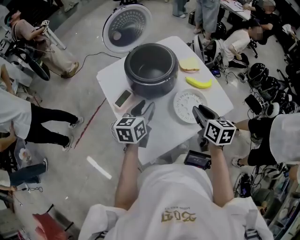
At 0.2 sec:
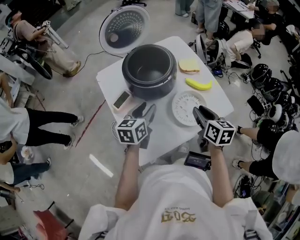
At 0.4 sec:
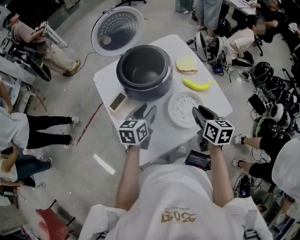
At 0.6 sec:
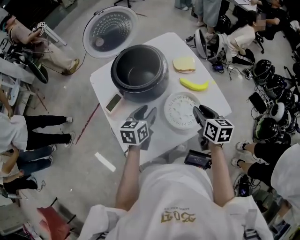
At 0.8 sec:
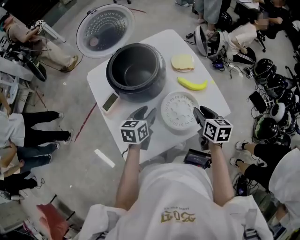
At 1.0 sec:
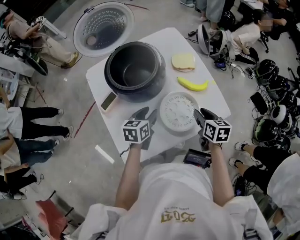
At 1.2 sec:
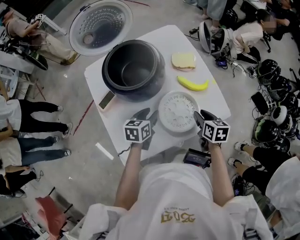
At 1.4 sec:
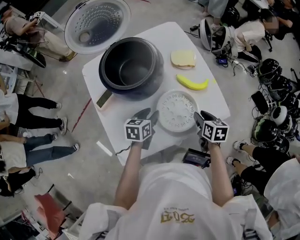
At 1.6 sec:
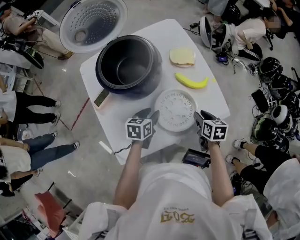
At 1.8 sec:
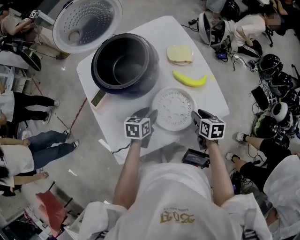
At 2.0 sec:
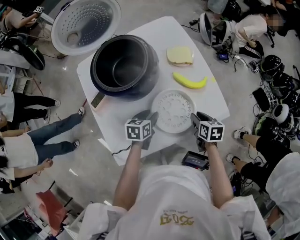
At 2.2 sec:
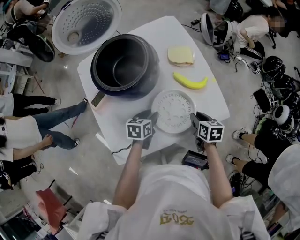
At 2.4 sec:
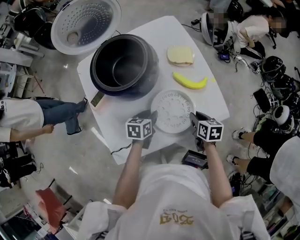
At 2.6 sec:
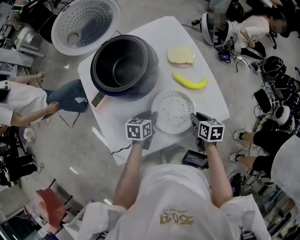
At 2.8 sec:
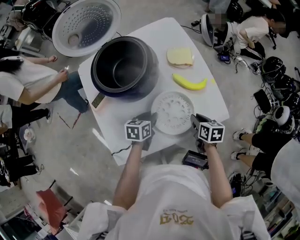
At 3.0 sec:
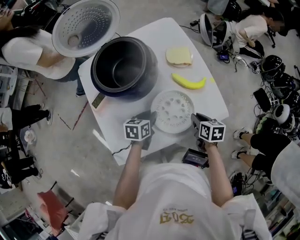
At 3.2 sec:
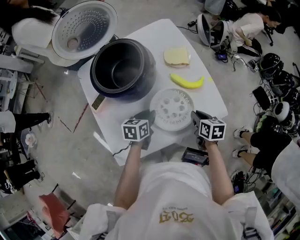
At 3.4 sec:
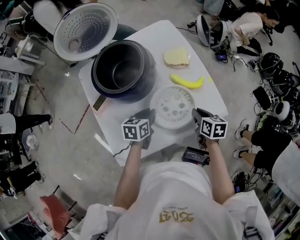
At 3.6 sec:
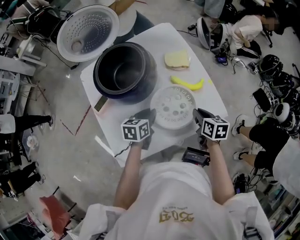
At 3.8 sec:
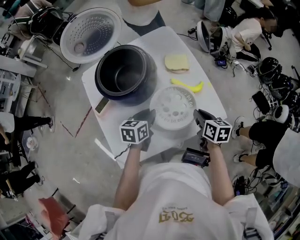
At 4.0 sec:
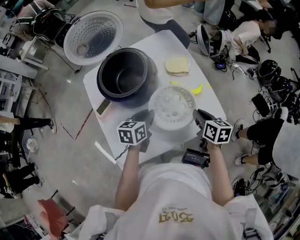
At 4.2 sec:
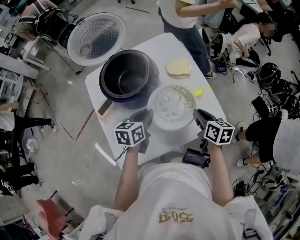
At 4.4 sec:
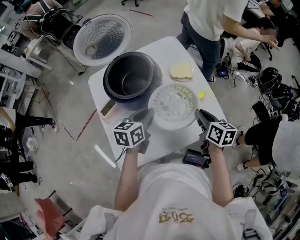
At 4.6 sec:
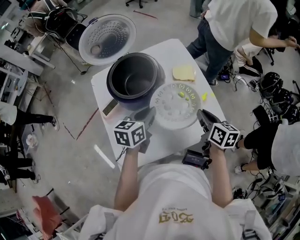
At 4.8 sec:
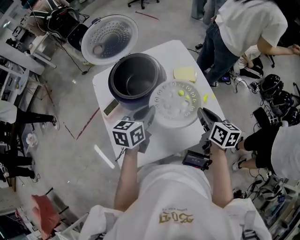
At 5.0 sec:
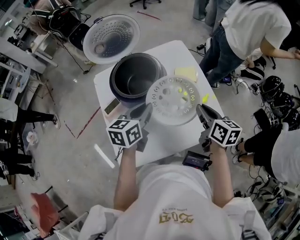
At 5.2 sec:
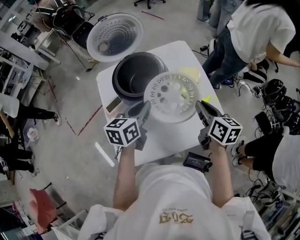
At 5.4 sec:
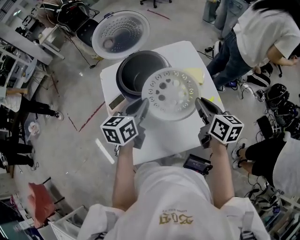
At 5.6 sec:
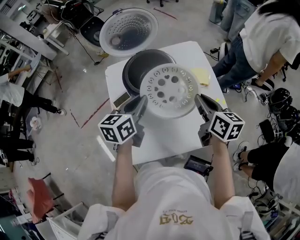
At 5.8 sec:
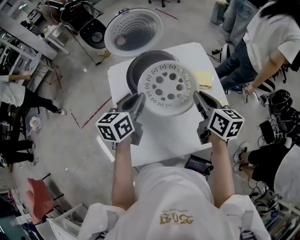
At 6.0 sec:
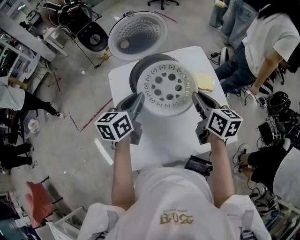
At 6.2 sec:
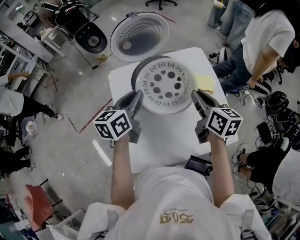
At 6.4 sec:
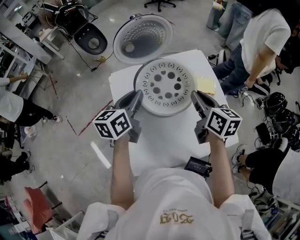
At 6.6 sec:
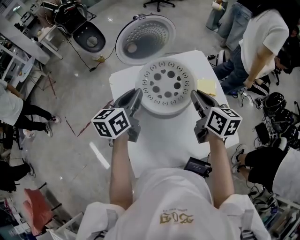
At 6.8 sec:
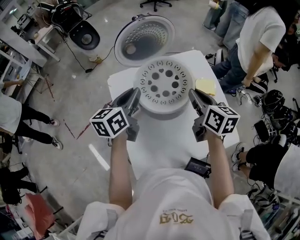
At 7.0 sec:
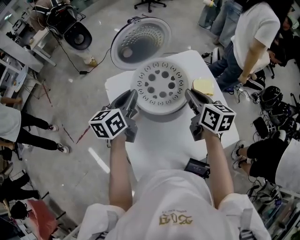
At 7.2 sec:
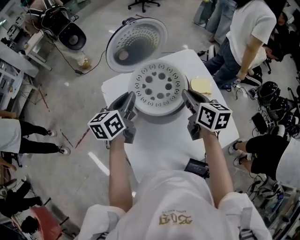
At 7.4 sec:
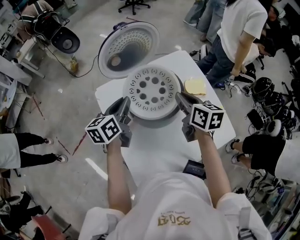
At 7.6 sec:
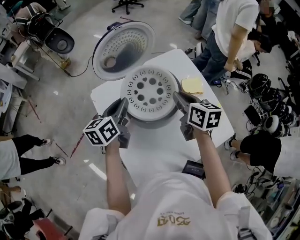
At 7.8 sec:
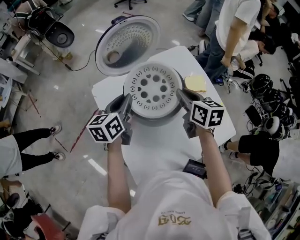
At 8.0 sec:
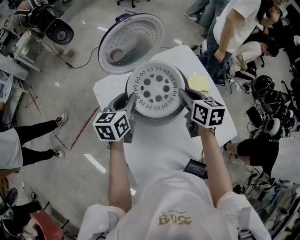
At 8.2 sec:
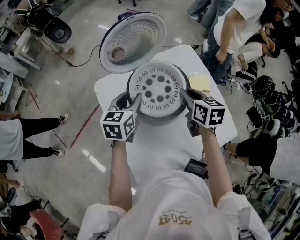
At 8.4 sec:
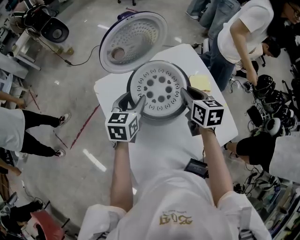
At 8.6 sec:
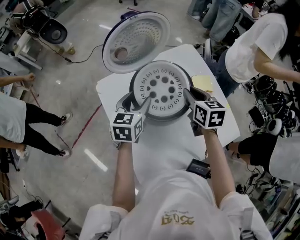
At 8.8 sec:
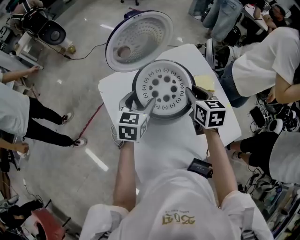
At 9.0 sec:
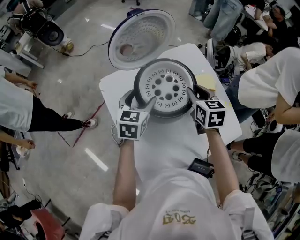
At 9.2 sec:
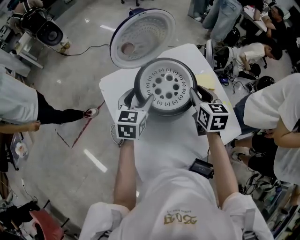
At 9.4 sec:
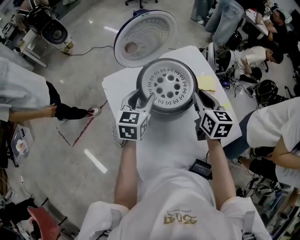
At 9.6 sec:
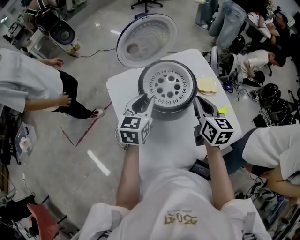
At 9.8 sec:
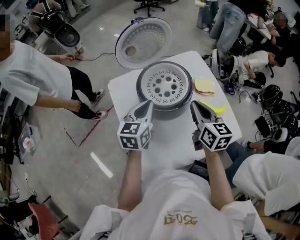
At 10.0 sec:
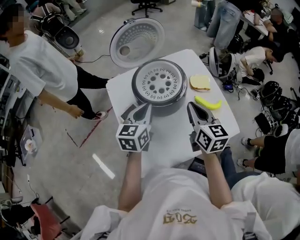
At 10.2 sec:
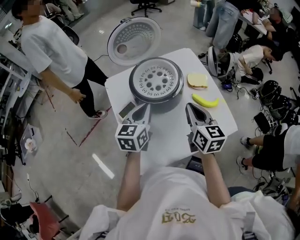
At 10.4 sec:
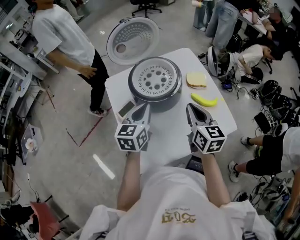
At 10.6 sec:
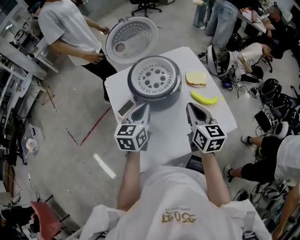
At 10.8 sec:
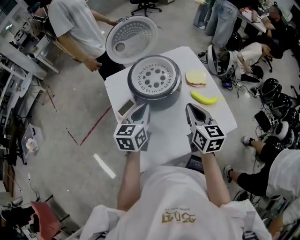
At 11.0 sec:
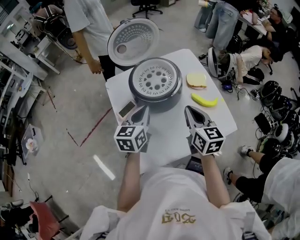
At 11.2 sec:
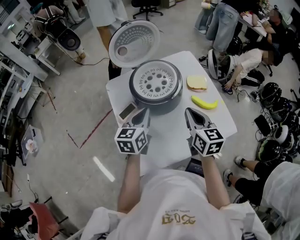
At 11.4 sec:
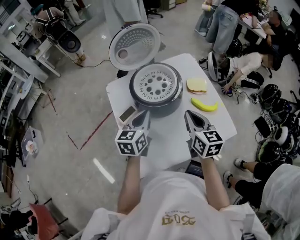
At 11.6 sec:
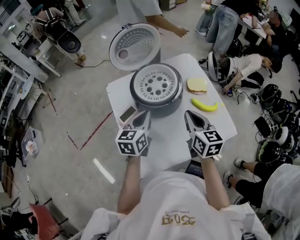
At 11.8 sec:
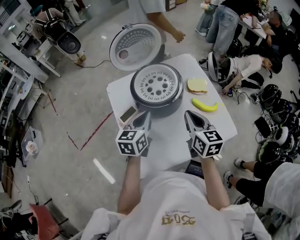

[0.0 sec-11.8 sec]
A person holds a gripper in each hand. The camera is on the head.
0.0 sec to 1.4 sec: The right gripper travels downward, to the right and forward by some 20 cm; the left gripper moves downward and to the right, roughly 20 cm, and swivels about 20 degrees.
1.4 sec to 3.0 sec: The left gripper closes.
3.0 sec to 4.4 sec: Both grippers travel together upward, approximately 15 cm.
4.4 sec to 6.0 sec: The left gripper shifts about 20 cm to the left and upward; the right gripper goes about 20 cm to the left, upward and forward.
6.0 sec to 7.4 sec: The left gripper shifts by some 5 cm.
7.4 sec to 8.8 sec: The right gripper is displaced to the right, downward and forward by about 20 cm, while the left gripper heads to the right and downward, covering some 25 cm, rotates approximately 30 degrees, and opens.
8.8 sec to 10.4 sec: Both grippers travel together backward, to the left and upward, approximately 25 cm. The right gripper closes. Meanwhile the left gripper closes.
10.4 sec to 11.8 sec: The grippers make only small movements.

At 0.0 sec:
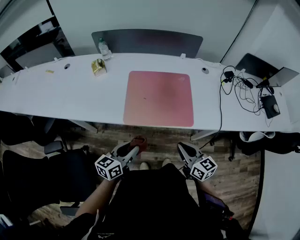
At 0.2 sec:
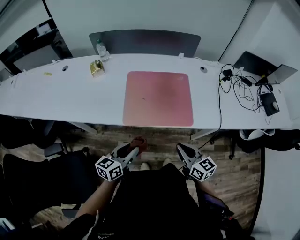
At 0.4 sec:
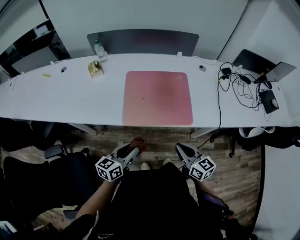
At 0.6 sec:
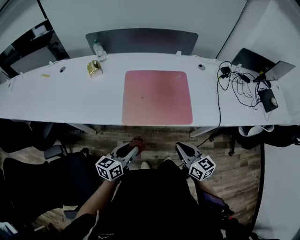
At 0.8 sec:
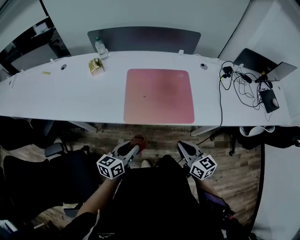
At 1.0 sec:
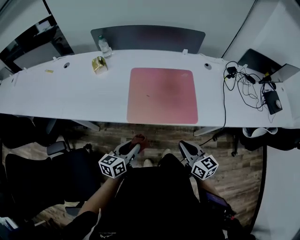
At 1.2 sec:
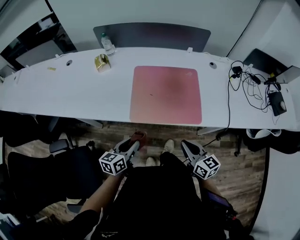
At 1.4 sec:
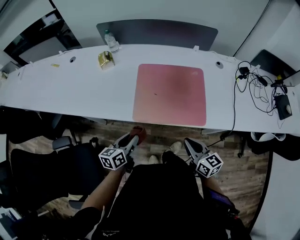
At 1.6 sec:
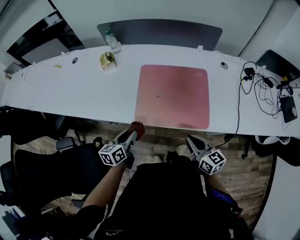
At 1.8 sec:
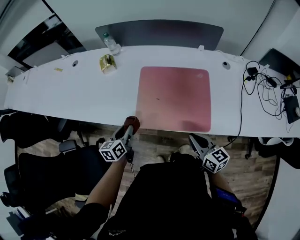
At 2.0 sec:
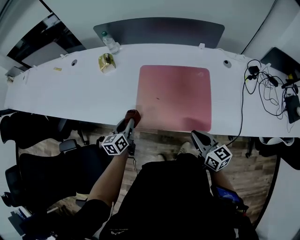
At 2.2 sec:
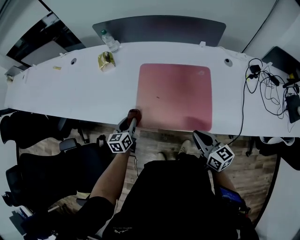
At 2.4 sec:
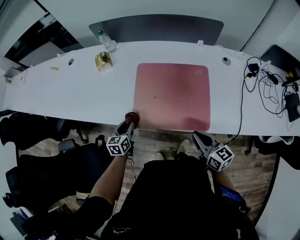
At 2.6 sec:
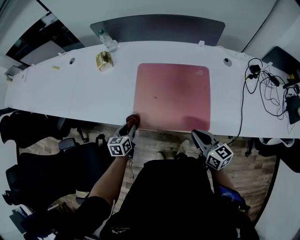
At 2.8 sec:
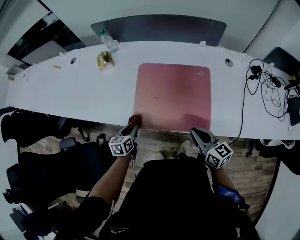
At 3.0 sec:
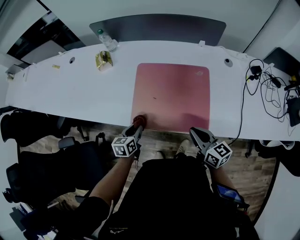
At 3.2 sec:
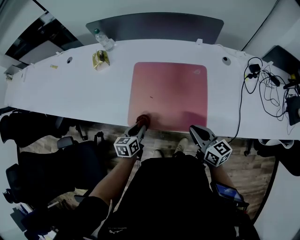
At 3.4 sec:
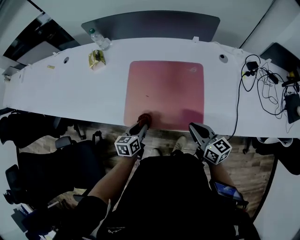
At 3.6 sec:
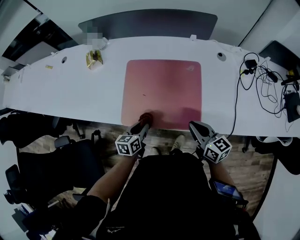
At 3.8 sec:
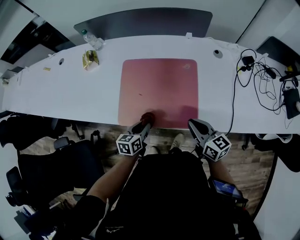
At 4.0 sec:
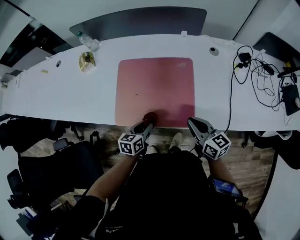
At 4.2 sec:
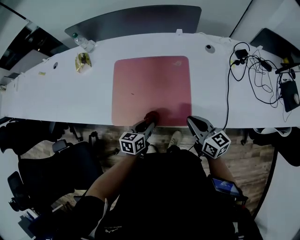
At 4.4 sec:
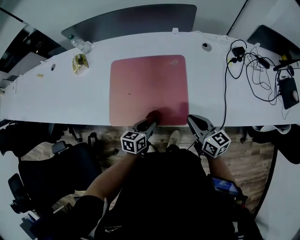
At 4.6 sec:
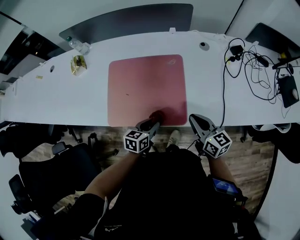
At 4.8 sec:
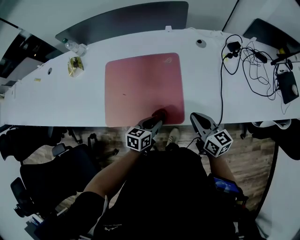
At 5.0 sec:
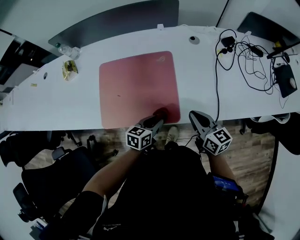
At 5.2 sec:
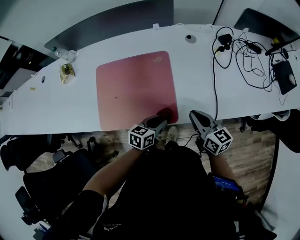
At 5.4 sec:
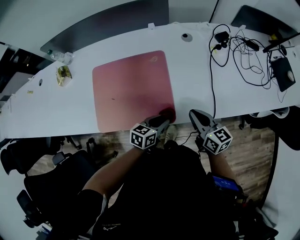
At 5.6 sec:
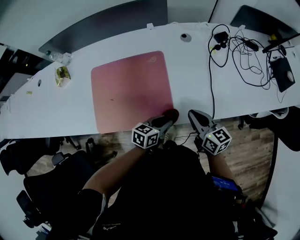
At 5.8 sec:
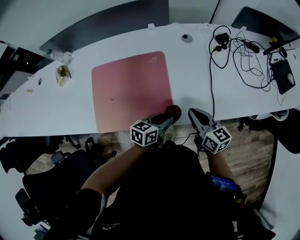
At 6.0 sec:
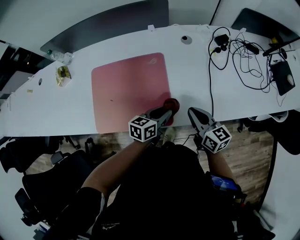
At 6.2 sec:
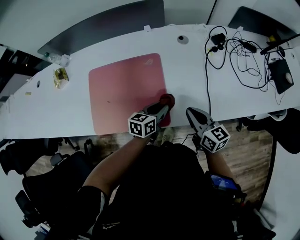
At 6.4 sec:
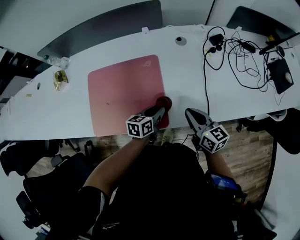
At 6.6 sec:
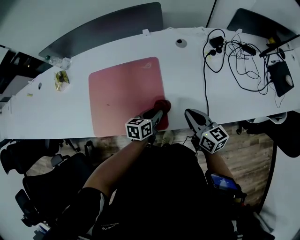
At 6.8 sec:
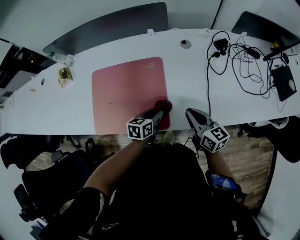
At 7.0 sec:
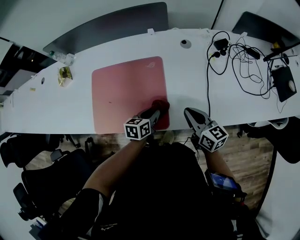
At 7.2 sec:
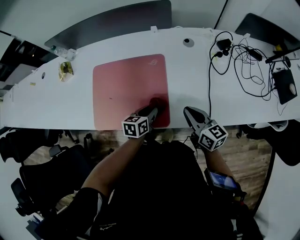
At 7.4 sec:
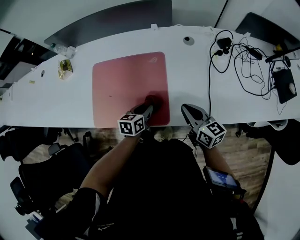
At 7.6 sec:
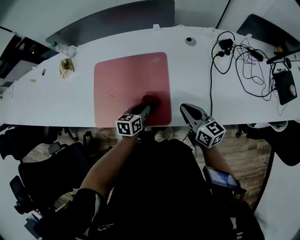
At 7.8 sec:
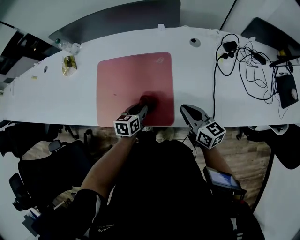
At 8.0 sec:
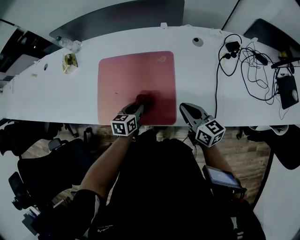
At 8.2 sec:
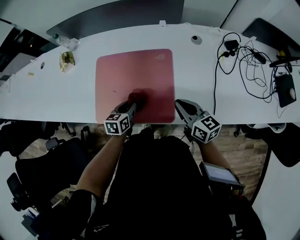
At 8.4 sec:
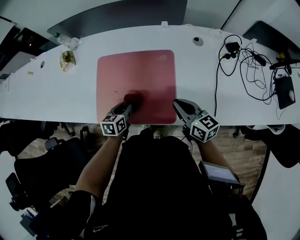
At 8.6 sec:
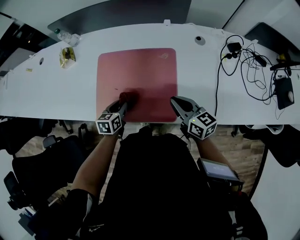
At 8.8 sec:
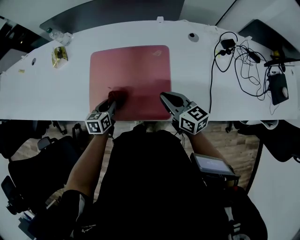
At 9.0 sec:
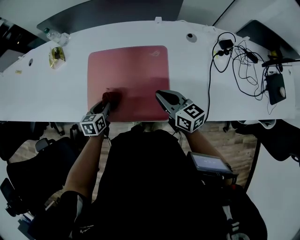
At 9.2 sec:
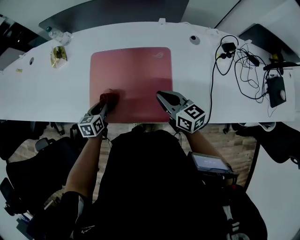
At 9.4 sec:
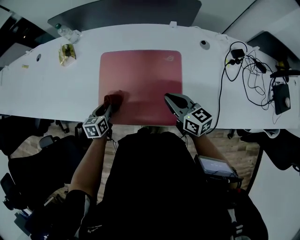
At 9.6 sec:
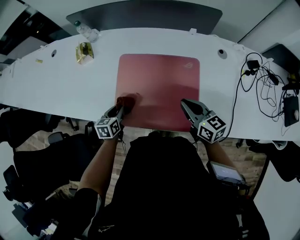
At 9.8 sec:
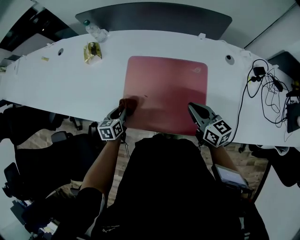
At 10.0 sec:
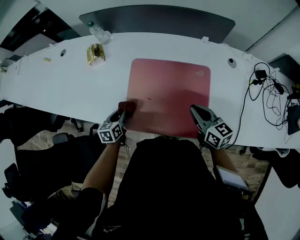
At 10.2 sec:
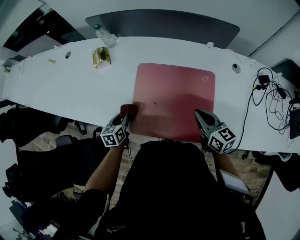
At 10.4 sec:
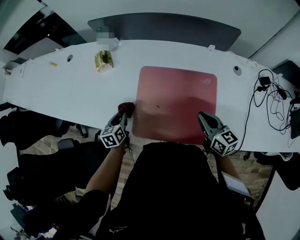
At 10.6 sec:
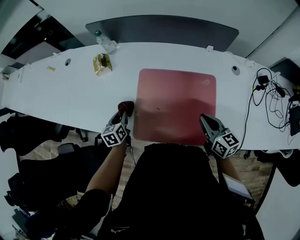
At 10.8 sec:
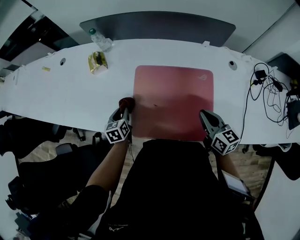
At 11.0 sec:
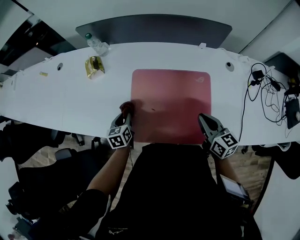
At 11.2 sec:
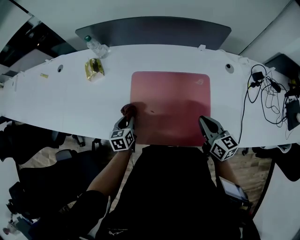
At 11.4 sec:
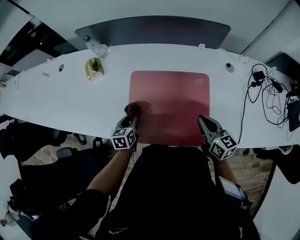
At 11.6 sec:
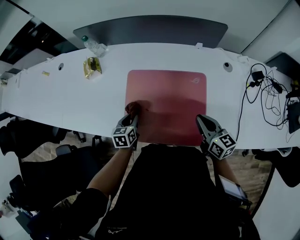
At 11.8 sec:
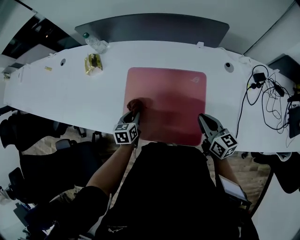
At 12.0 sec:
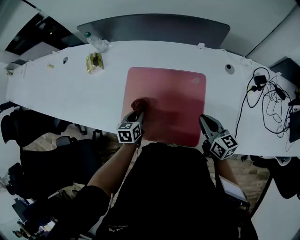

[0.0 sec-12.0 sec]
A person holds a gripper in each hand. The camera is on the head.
0.0 sec to 1.6 sec: The right gripper goes some 10 cm forward. The left gripper travels forward and to the left by roughly 10 cm, and swivels about 20 degrees.
1.6 sec to 3.0 sec: The right gripper moves forward, roughly 5 cm; the left gripper heads downward, covering approximately 5 cm.
3.0 sec to 4.4 sec: The right gripper goes approximately 10 cm to the right, while the left gripper goes roughly 20 cm to the right.
4.4 sec to 6.0 sec: The right gripper is displaced to the right by some 10 cm. Meanwhile the left gripper shifts some 15 cm to the right and forward.
6.0 sec to 7.6 sec: The left gripper goes roughly 10 cm to the left, and changes its angle by about 20 degrees.
7.6 sec to 9.0 sec: The left gripper travels to the left by approximately 20 cm; the right gripper heads to the left and forward, covering some 10 cm.
9.0 sec to 10.4 sec: The left gripper is displaced to the left by about 15 cm. The right gripper changes place by roughly 5 cm.
10.4 sec to 12.0 sec: The left gripper moves to the right, some 15 cm. Meanwhile the right gripper shifts roughly 10 cm to the right.
